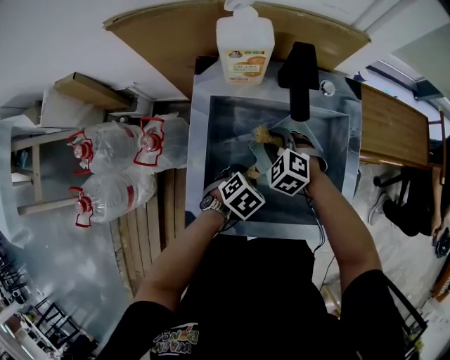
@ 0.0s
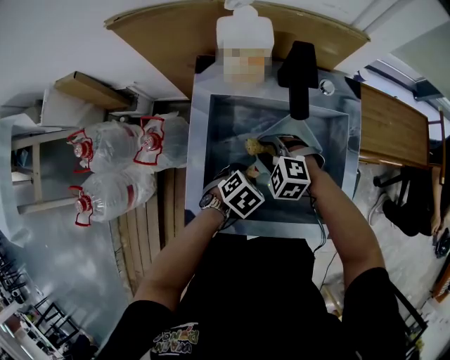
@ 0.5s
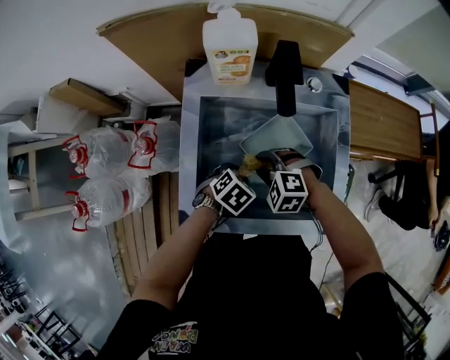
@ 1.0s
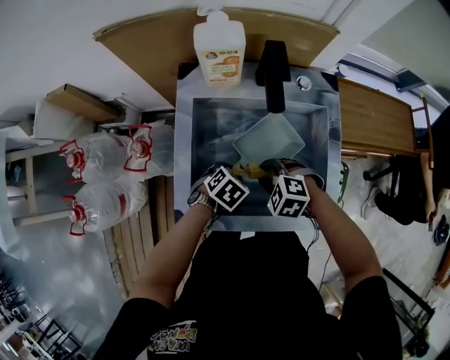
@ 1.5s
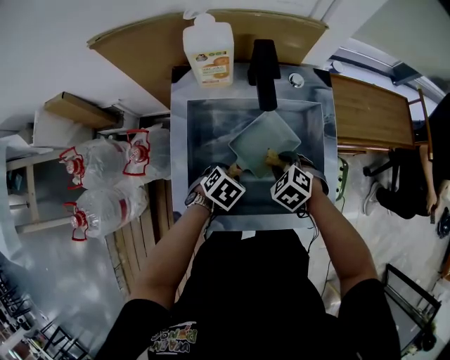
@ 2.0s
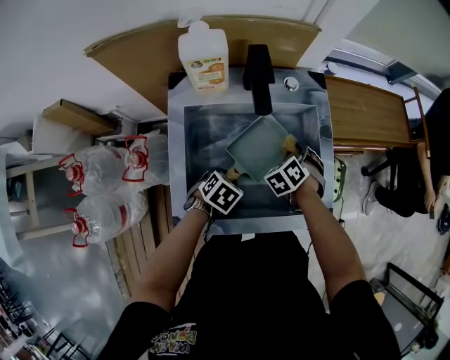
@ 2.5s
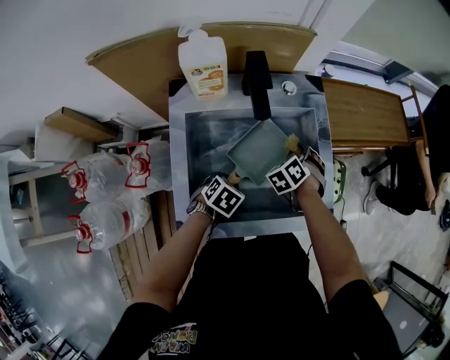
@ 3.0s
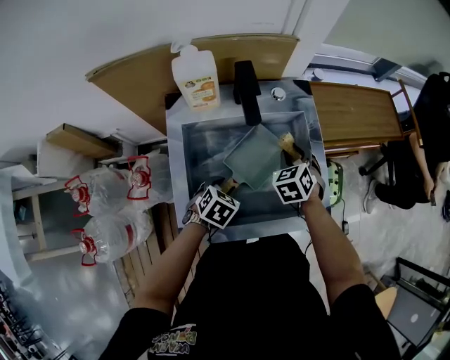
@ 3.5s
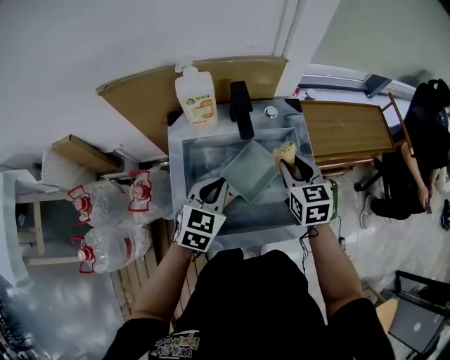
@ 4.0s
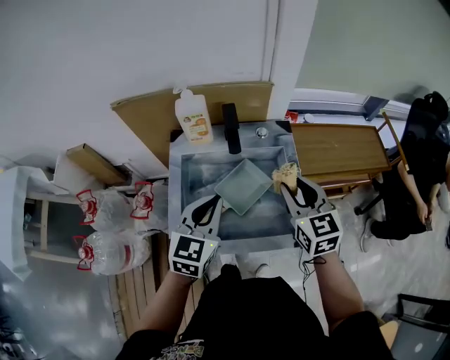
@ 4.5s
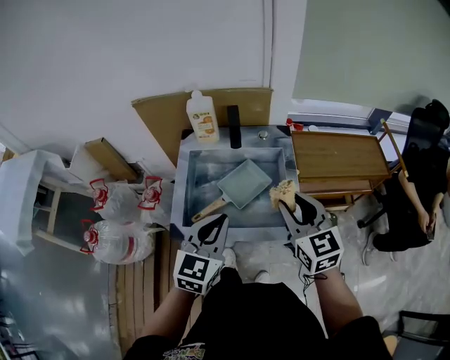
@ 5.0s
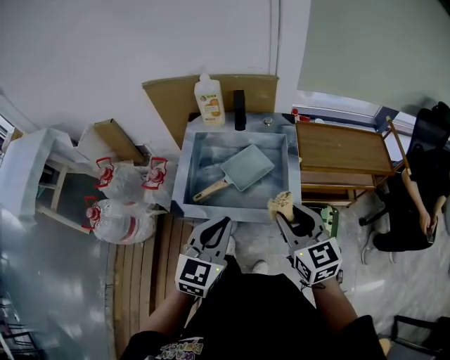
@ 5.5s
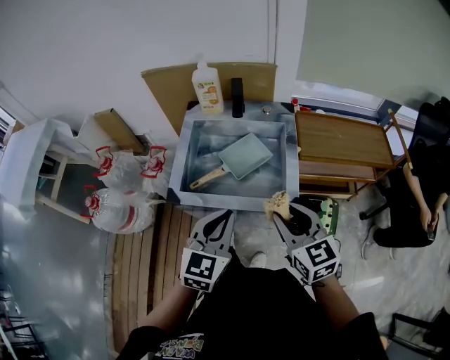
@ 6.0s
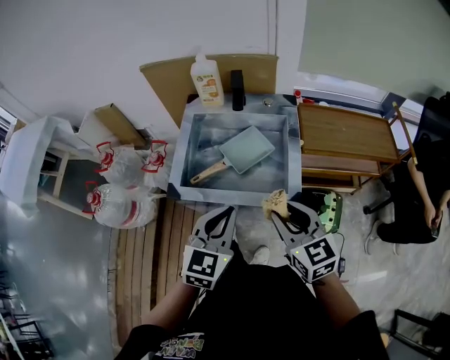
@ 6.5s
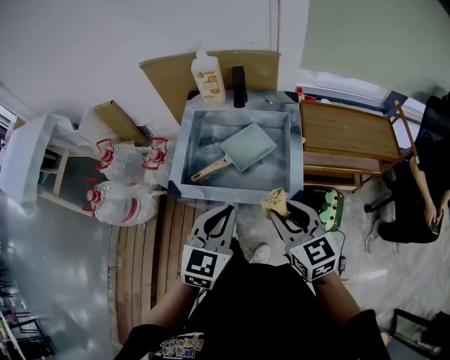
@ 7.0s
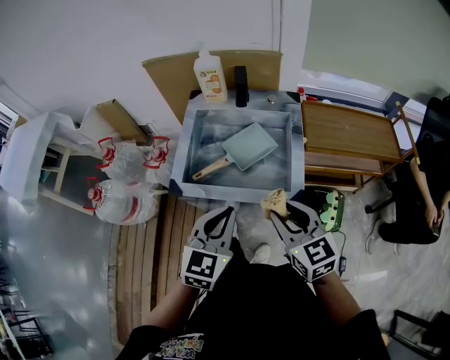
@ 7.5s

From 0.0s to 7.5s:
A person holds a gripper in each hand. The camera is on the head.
From 0.0s to 2.0s: The right gripper moves roughly 15 cm.
From 2.0s to 4.0s: Both grippers travel together upward, some 20 cm. The right gripper angles its fingers upward, by roughly 40 degrees, while the left gripper tilts its fingers about 40 degrees upward, and closes its fingers.
From 4.0s to 5.5s: Both grippers travel together backward and upward, approximately 25 cm. The right gripper changes its angle by some 30 degrees.
From 5.5s to 7.5s: The right gripper shifts by about 5 cm.

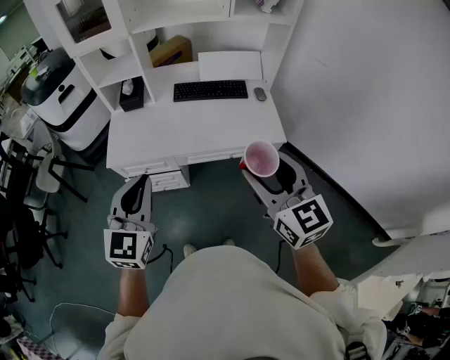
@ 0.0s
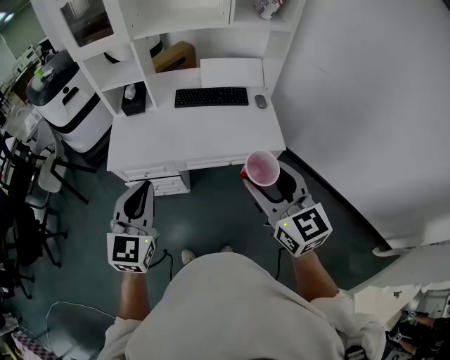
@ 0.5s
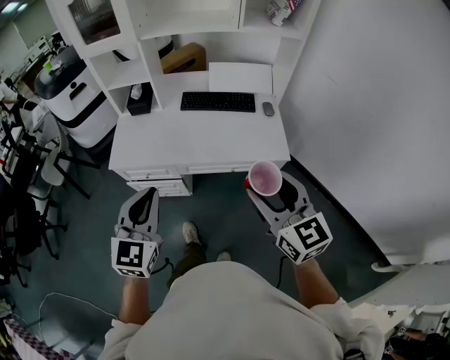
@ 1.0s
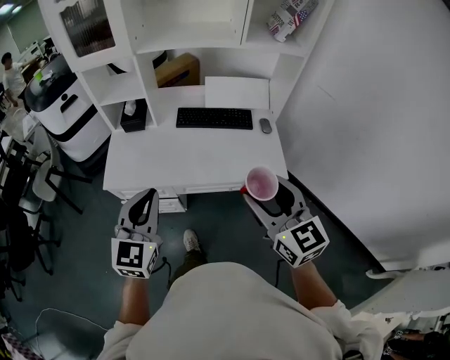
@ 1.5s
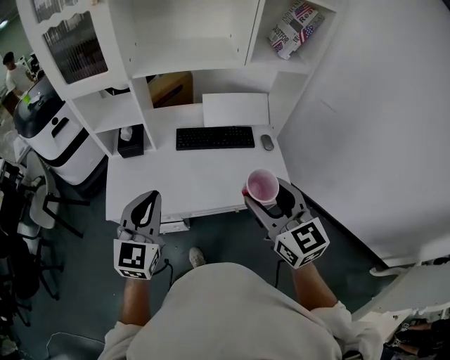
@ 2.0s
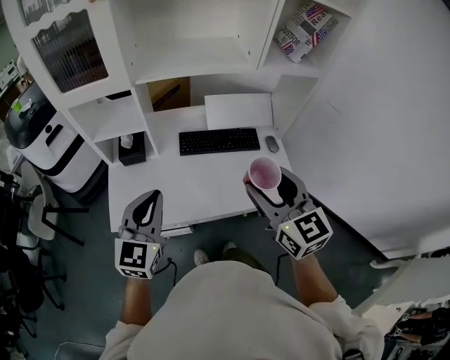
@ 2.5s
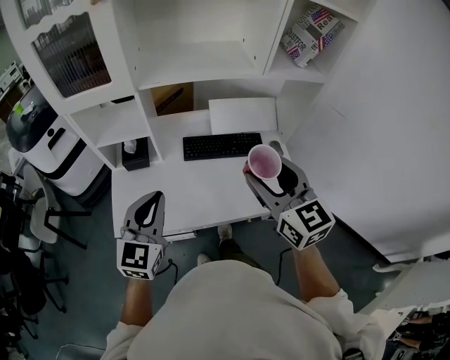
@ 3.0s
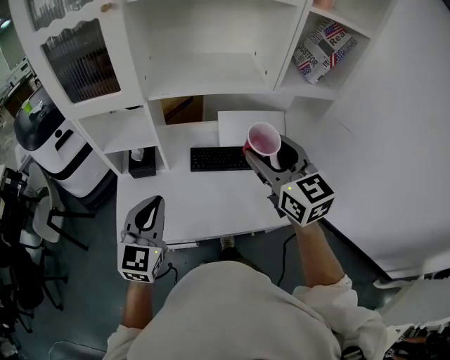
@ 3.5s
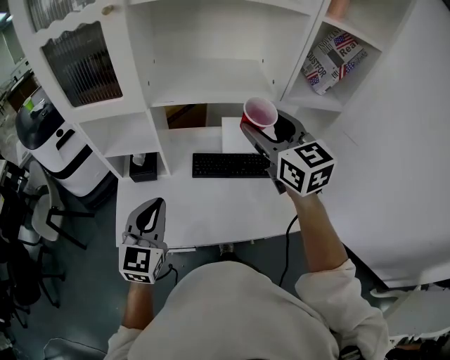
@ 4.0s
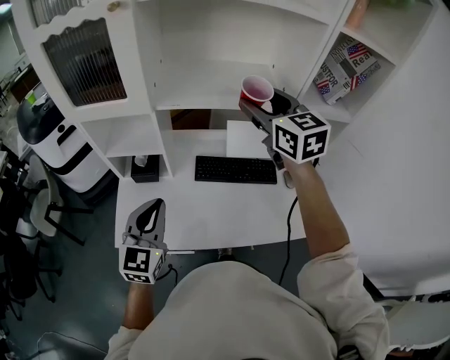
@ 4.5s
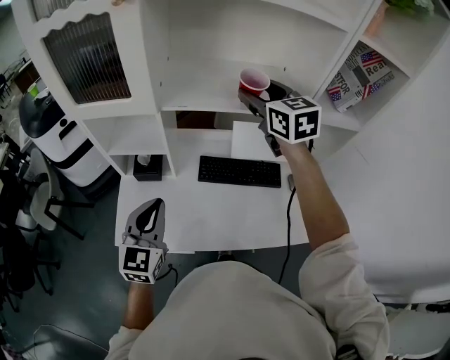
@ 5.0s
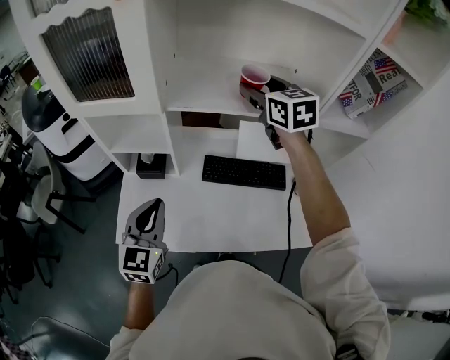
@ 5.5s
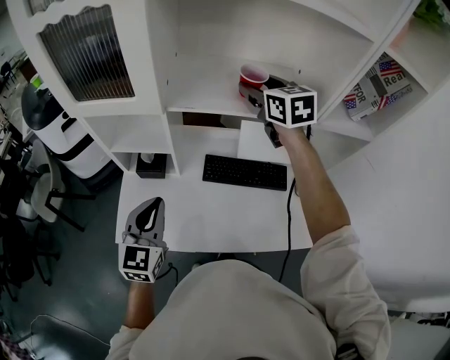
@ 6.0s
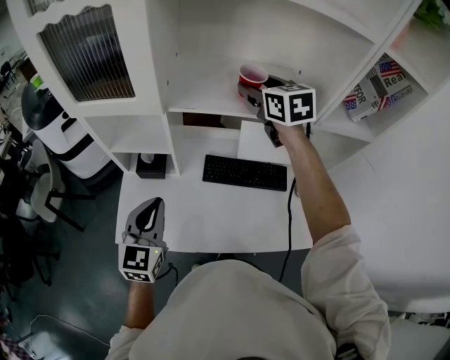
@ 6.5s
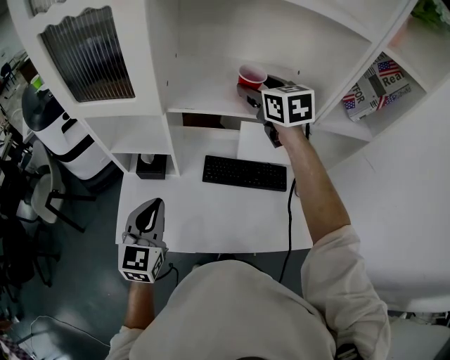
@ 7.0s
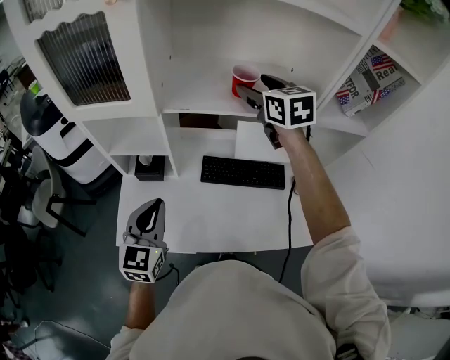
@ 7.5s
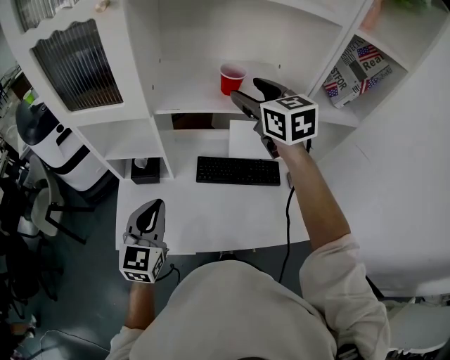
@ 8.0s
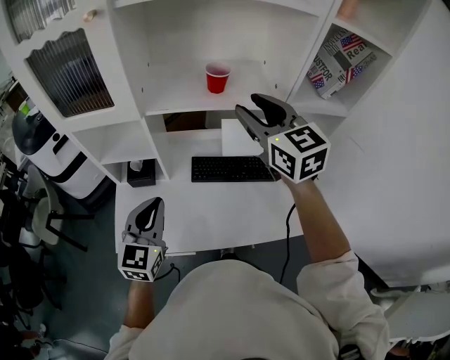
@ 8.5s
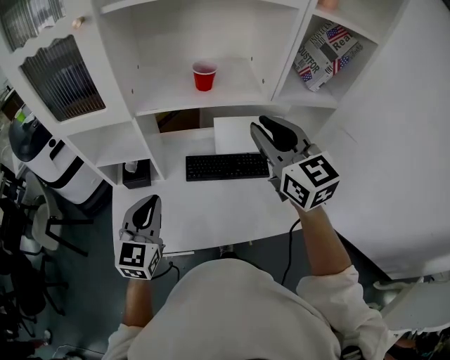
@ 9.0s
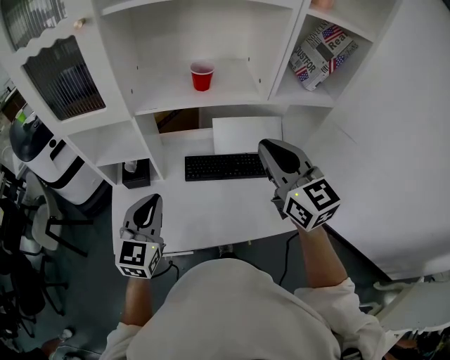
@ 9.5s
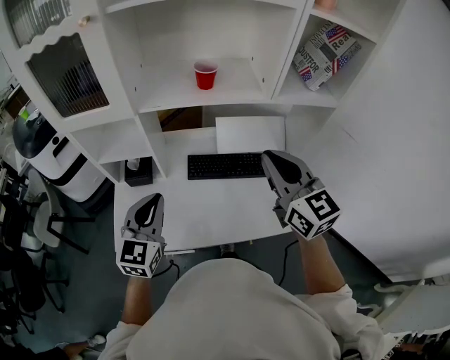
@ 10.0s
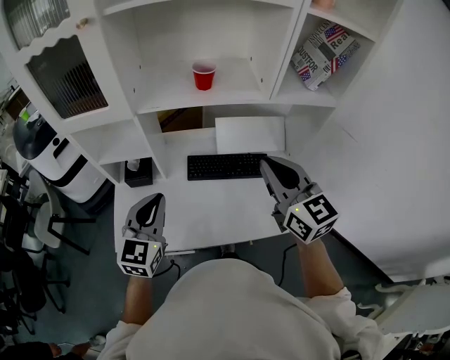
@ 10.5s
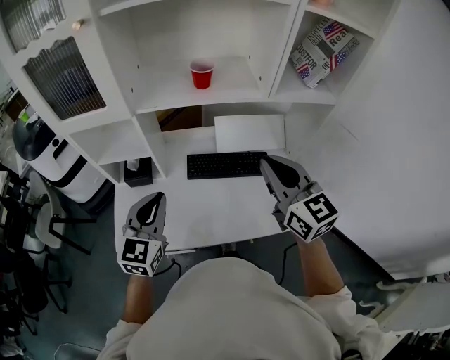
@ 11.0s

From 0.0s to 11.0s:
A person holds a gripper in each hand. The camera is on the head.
From 0.0s to 2.0s: Both grippers move forward, approximately 20 cm.
From 2.0s to 3.5s: The left gripper travels forward and to the left by some 10 cm, while the right gripper heads forward, covering some 20 cm.
From 3.5s to 5.5s: The left gripper shifts roughly 10 cm forward, while the right gripper shifts approximately 30 cm forward.
From 5.5s to 7.5s: The grippers move only a little.
From 7.5s to 9.0s: The right gripper heads backward, covering about 20 cm, and closes. Meanwhile the left gripper shifts by some 5 cm.
From 9.0s to 11.0s: The right gripper heads backward and downward, covering approximately 10 cm.

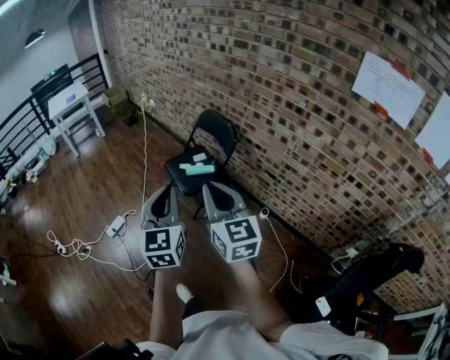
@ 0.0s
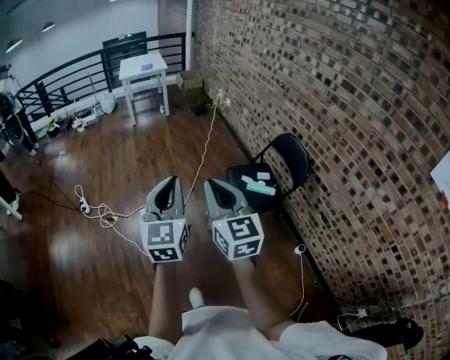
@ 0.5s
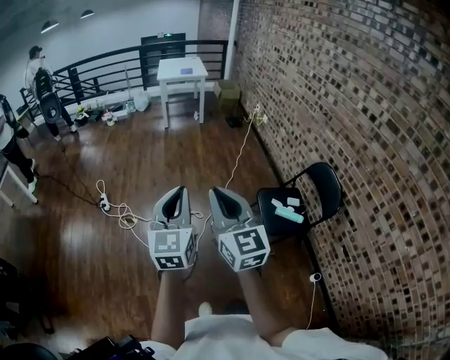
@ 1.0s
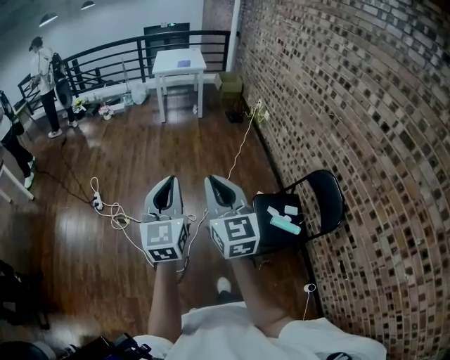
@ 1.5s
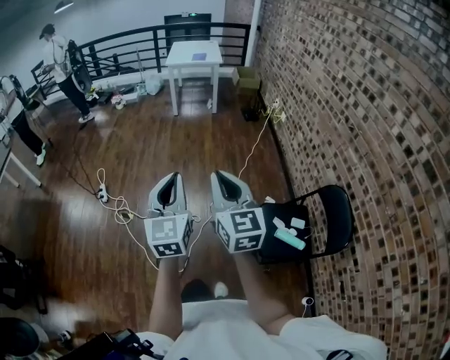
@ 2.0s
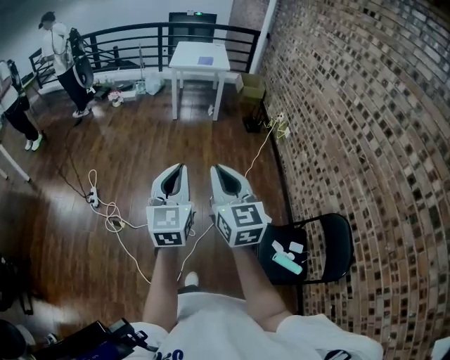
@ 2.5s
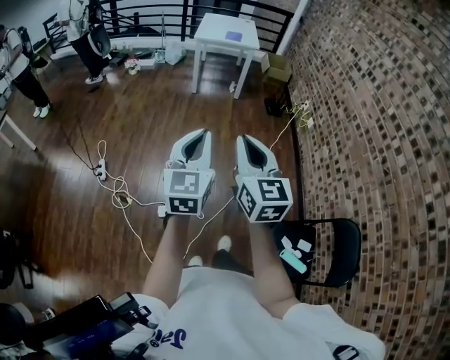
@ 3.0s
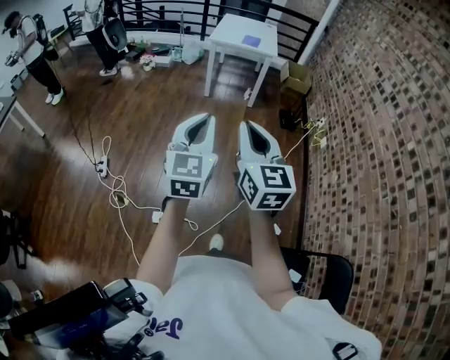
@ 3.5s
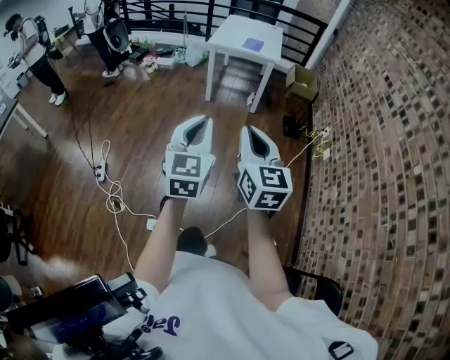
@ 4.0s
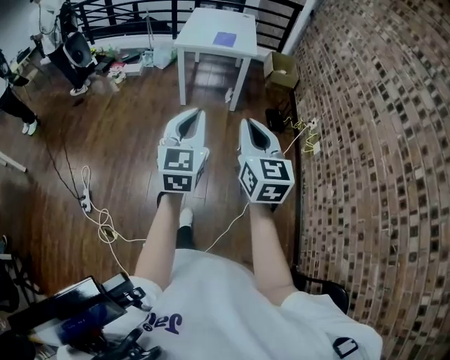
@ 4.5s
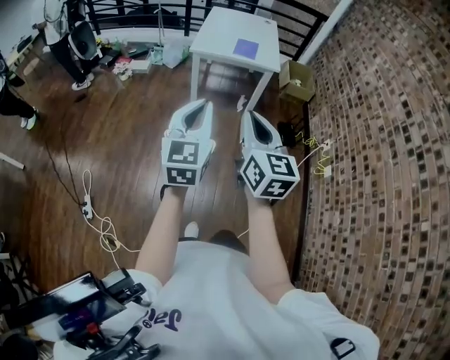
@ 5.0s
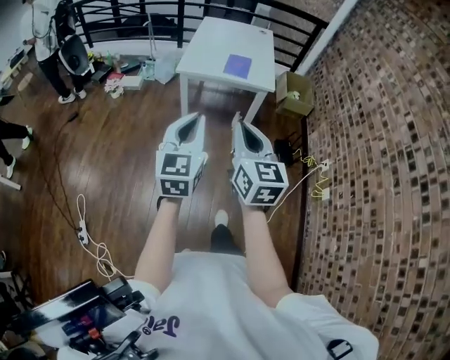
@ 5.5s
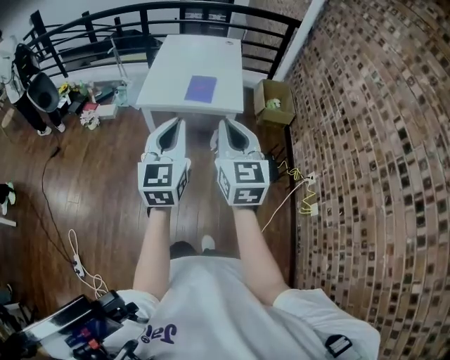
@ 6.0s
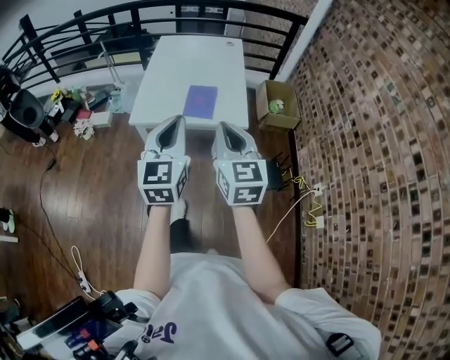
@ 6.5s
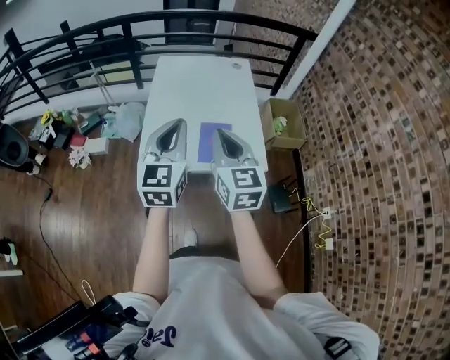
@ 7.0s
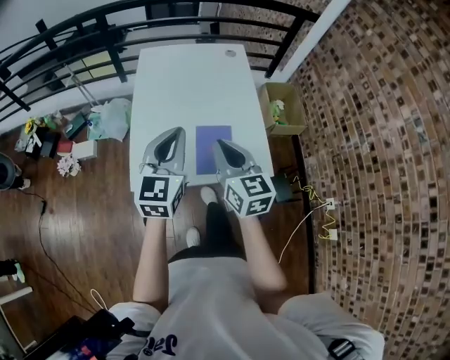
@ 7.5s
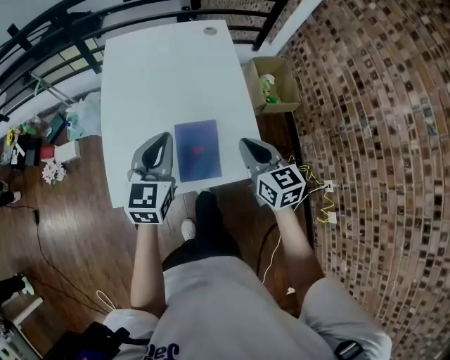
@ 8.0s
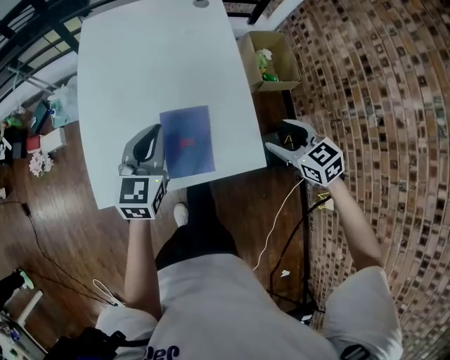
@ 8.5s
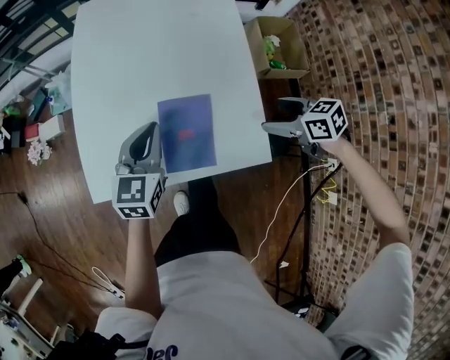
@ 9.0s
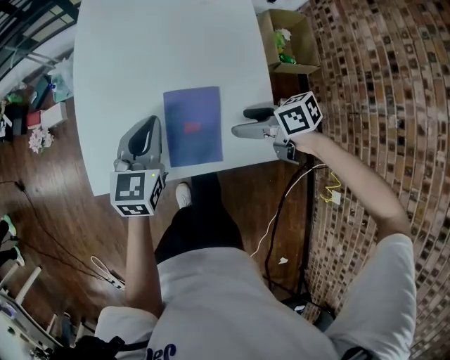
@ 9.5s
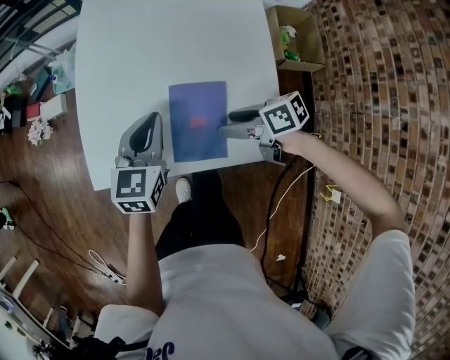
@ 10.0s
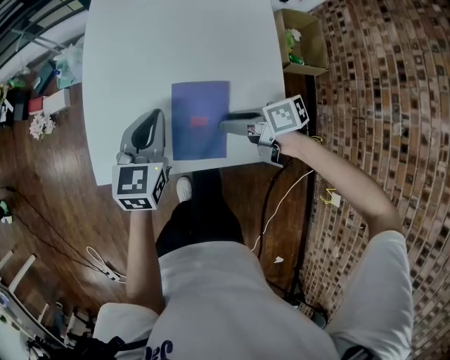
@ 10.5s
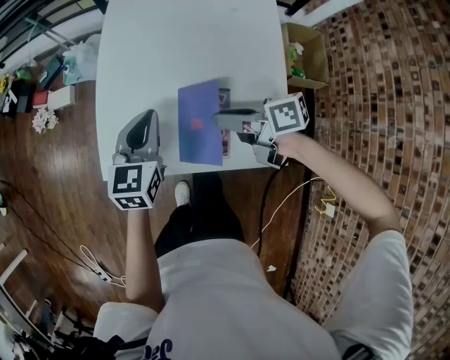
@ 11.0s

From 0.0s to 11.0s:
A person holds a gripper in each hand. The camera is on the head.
From 0.0s to 2.0s: The pair of grippers is taken about 50 cm. The left gripper turns by about 40 degrees; the right gripper turns by approximately 30 degrees.
From 2.0s to 3.5s: Both grippers are carried forward, about 40 cm.
From 3.5s to 5.5s: Both grippers are carried forward, some 60 cm.
From 5.5s to 7.5s: The pair of grippers is taken forward, some 60 cm.
From 7.5s to 9.0s: The right gripper goes approximately 35 cm to the right and downward, tips its fingers downward by some 30 degrees, and opens up; the left gripper moves downward, some 20 cm.
From 9.0s to 11.0s: The left gripper travels to the left by roughly 5 cm, while the right gripper heads to the left and forward, covering roughly 25 cm, turns by approximately 40 degrees, and closes up.
